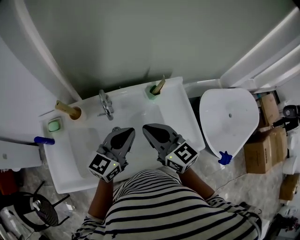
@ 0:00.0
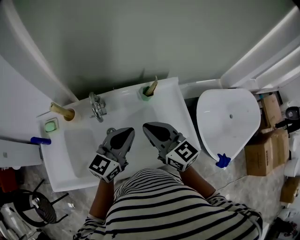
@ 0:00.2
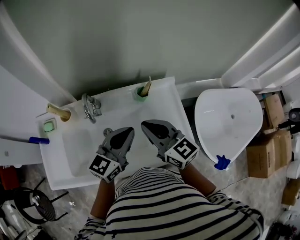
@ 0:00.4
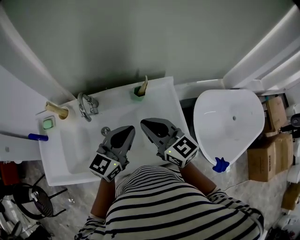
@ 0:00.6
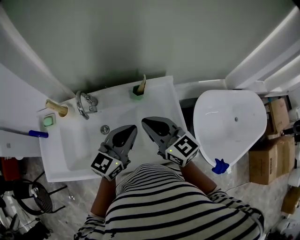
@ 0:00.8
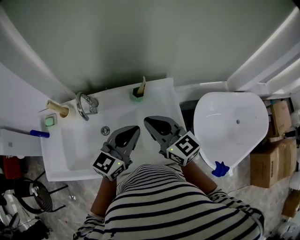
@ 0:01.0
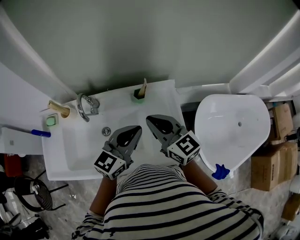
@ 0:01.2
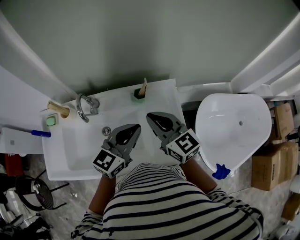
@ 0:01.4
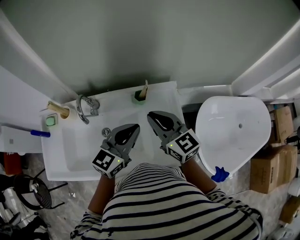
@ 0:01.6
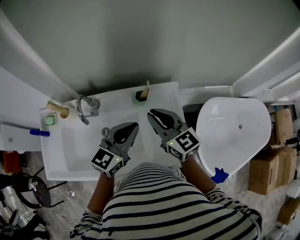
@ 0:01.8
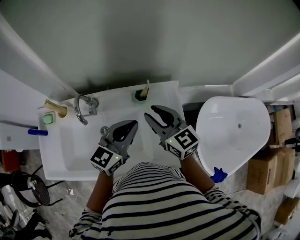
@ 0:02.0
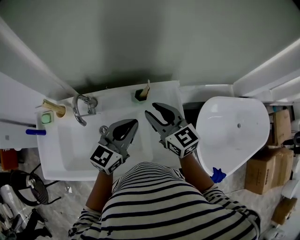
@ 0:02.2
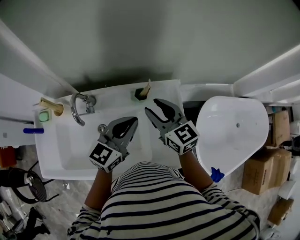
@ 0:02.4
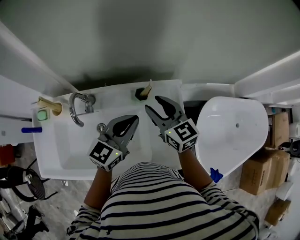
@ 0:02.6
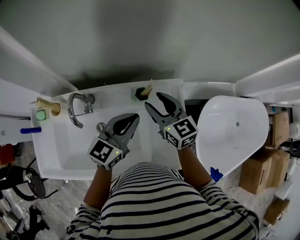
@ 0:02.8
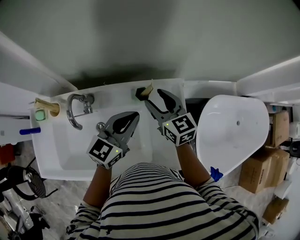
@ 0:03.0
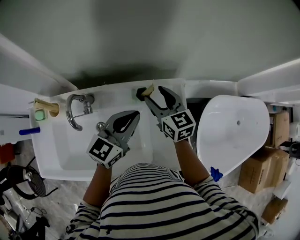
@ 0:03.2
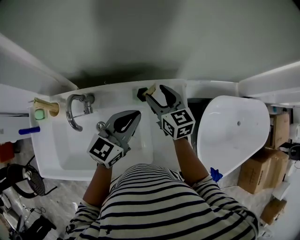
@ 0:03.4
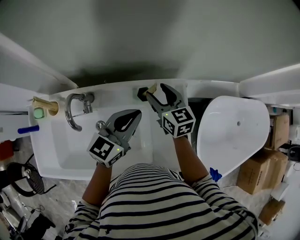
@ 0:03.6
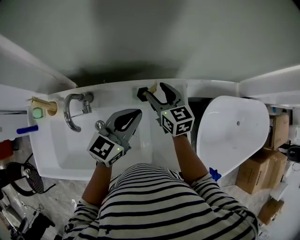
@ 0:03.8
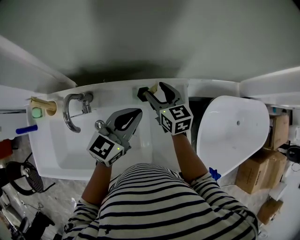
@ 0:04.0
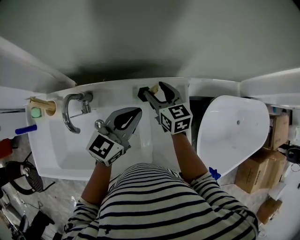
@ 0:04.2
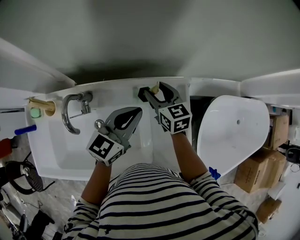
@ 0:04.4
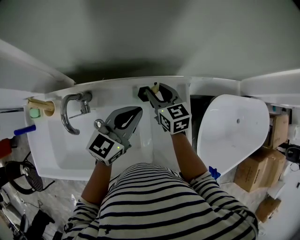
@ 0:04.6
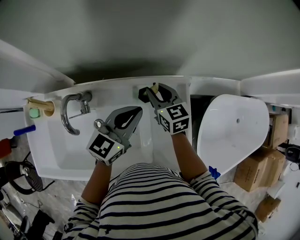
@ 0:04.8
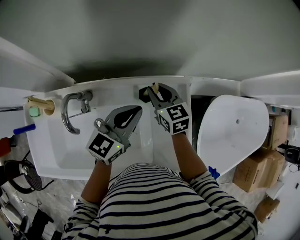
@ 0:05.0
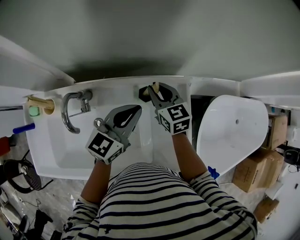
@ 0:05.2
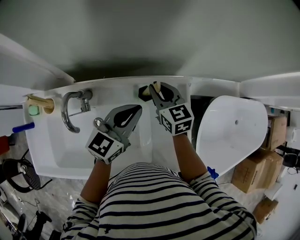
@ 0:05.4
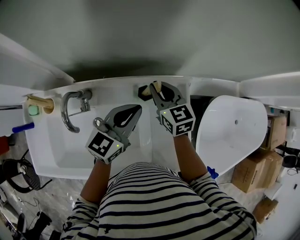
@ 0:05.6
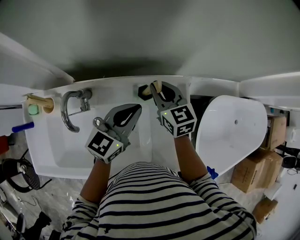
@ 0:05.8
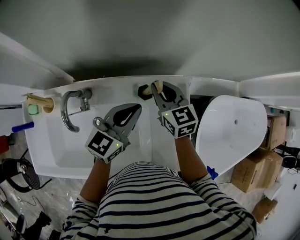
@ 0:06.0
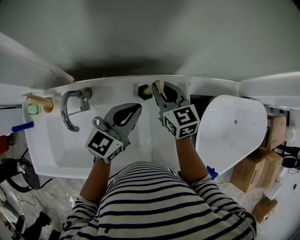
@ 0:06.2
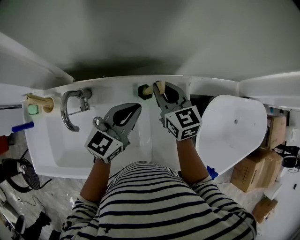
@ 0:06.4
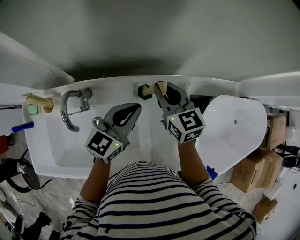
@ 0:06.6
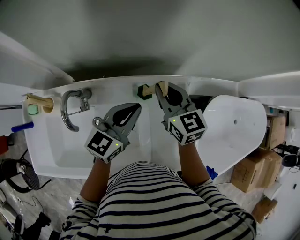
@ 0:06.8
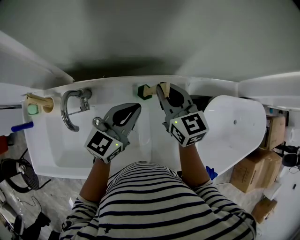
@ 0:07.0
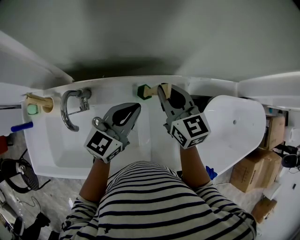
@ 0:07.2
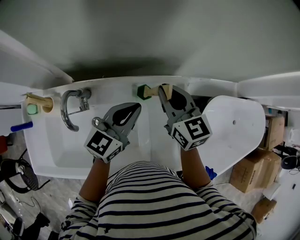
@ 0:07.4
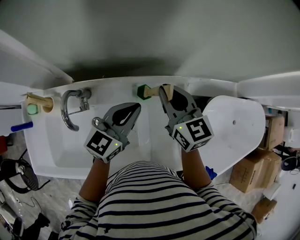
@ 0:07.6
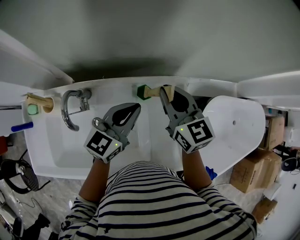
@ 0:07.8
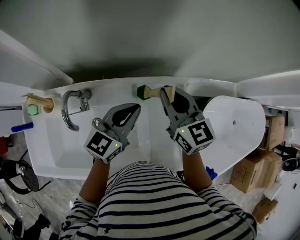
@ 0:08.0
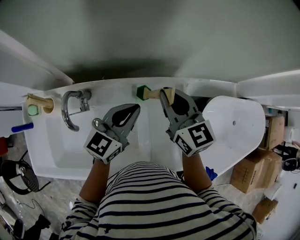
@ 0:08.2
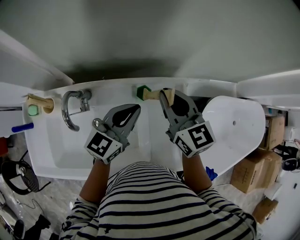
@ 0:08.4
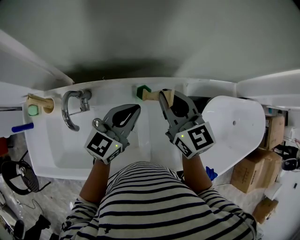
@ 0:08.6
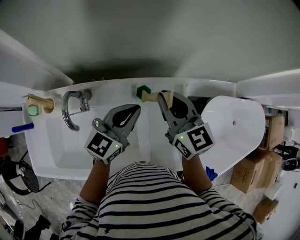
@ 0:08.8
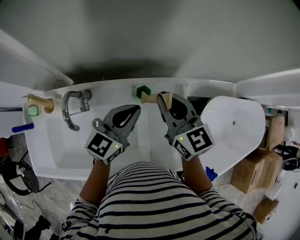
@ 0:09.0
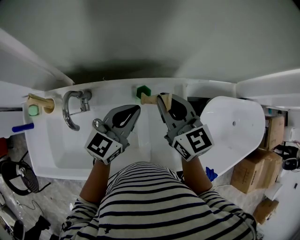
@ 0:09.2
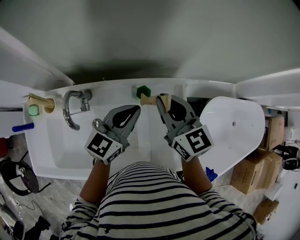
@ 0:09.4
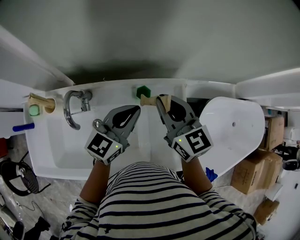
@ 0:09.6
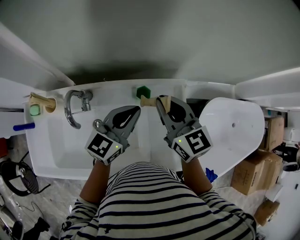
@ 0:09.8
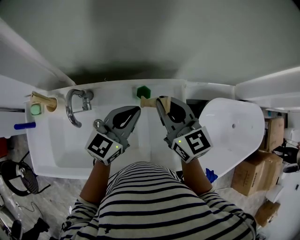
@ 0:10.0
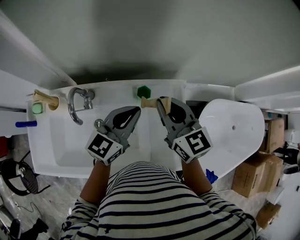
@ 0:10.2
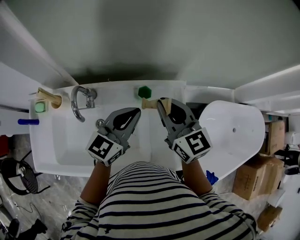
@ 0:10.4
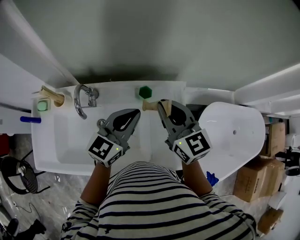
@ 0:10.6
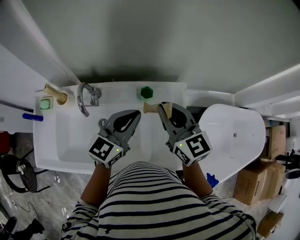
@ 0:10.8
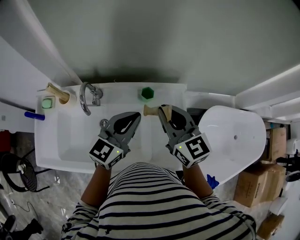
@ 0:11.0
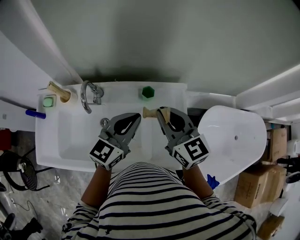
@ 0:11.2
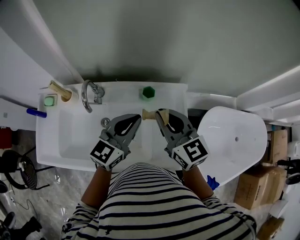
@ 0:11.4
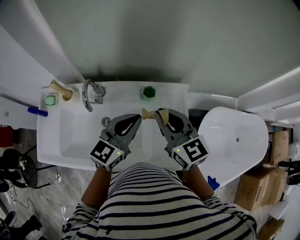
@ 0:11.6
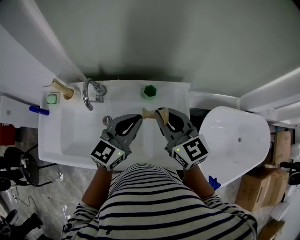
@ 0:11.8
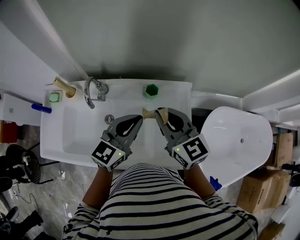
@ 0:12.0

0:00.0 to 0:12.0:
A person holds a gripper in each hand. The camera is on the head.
0:00.0 to 0:01.6: The left gripper shifts some 15 cm to the right. The right gripper travels to the right and forward by approximately 15 cm.
0:01.6 to 0:03.0: The left gripper heads forward, covering some 10 cm. Meanwhile the right gripper shifts some 15 cm forward and downward, and opens up.
0:03.0 to 0:04.4: The right gripper shifts approximately 10 cm downward and forward.
0:04.4 to 0:06.0: The right gripper closes up.
0:06.0 to 0:07.6: The right gripper goes about 5 cm upward.
0:07.6 to 0:09.0: There are only small adjustments of the grippers.
0:09.0 to 0:10.4: The left gripper shifts by about 5 cm. The right gripper shifts by roughly 5 cm.
0:10.4 to 0:12.0: Both grippers move backward, roughly 5 cm.

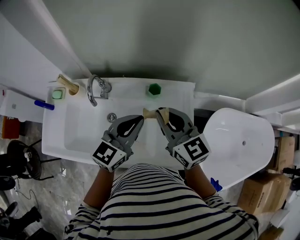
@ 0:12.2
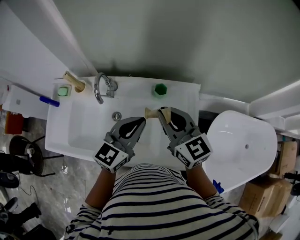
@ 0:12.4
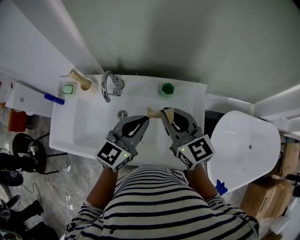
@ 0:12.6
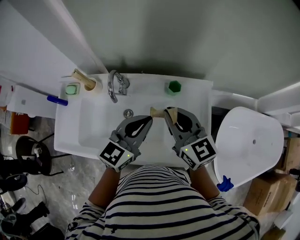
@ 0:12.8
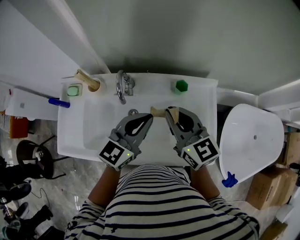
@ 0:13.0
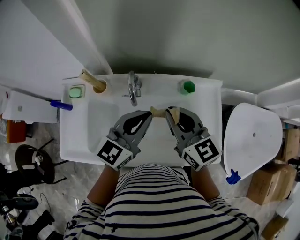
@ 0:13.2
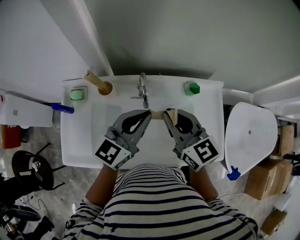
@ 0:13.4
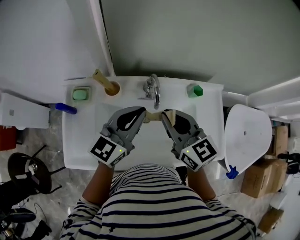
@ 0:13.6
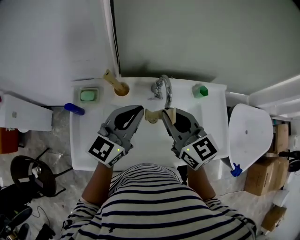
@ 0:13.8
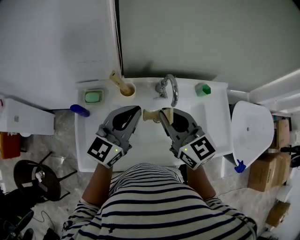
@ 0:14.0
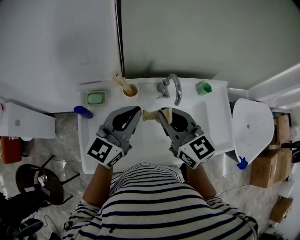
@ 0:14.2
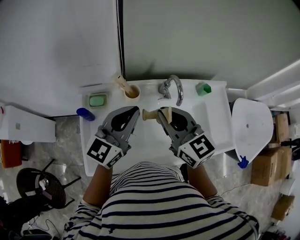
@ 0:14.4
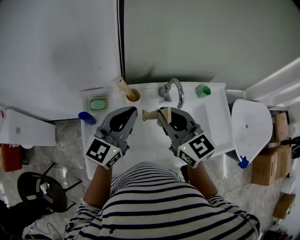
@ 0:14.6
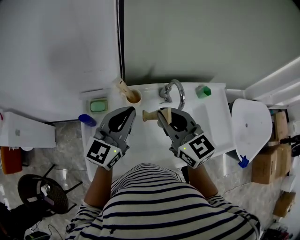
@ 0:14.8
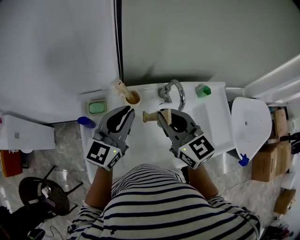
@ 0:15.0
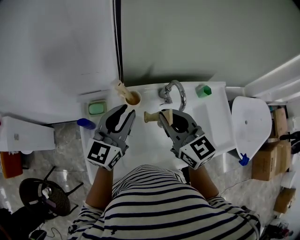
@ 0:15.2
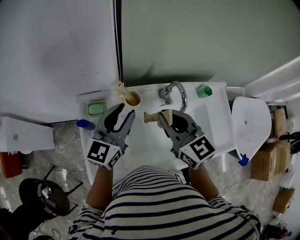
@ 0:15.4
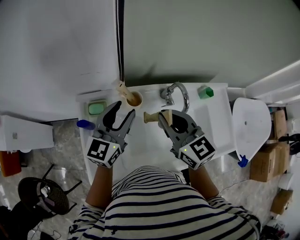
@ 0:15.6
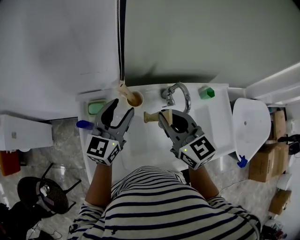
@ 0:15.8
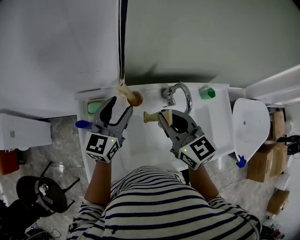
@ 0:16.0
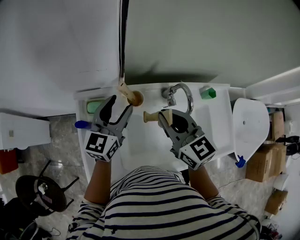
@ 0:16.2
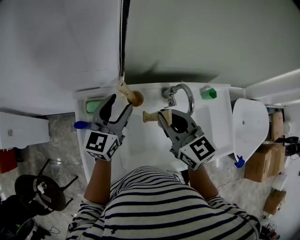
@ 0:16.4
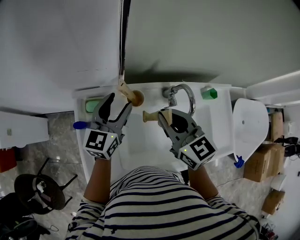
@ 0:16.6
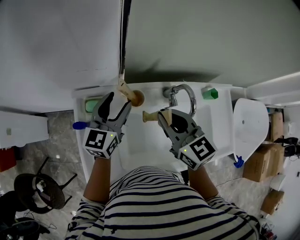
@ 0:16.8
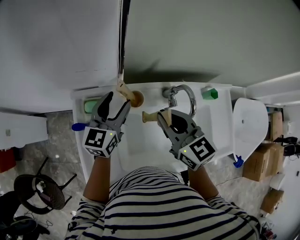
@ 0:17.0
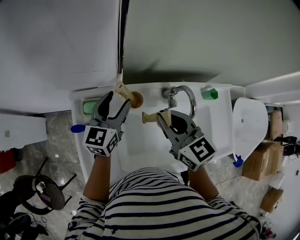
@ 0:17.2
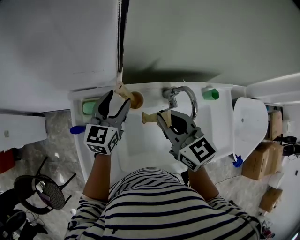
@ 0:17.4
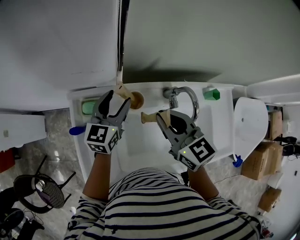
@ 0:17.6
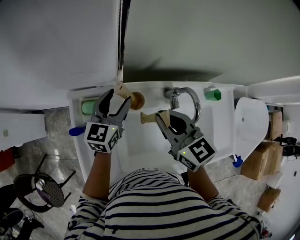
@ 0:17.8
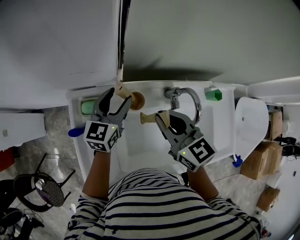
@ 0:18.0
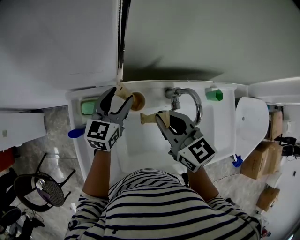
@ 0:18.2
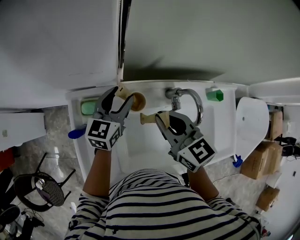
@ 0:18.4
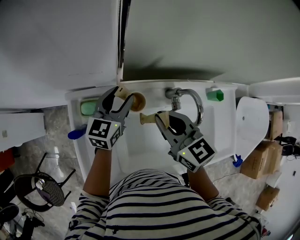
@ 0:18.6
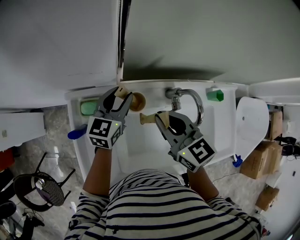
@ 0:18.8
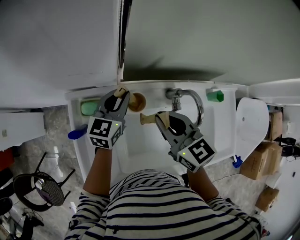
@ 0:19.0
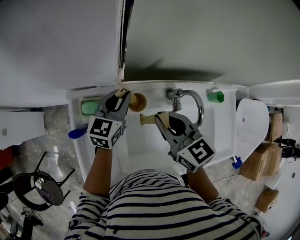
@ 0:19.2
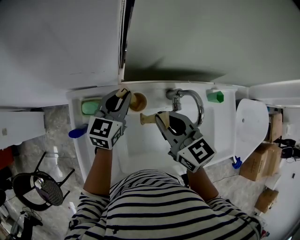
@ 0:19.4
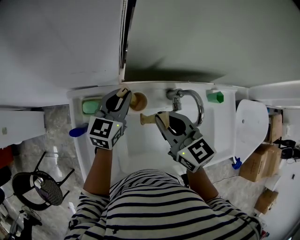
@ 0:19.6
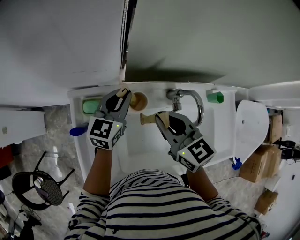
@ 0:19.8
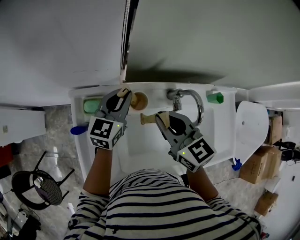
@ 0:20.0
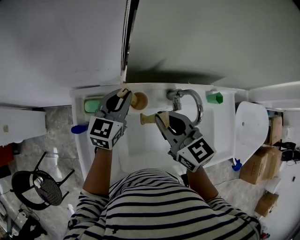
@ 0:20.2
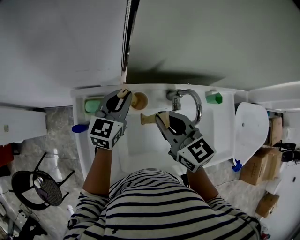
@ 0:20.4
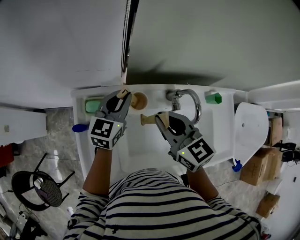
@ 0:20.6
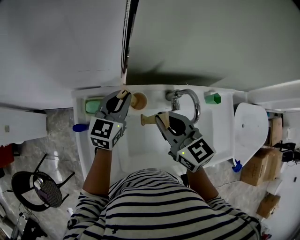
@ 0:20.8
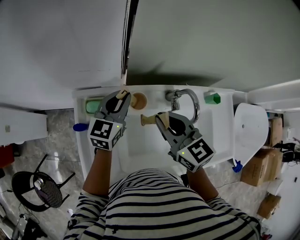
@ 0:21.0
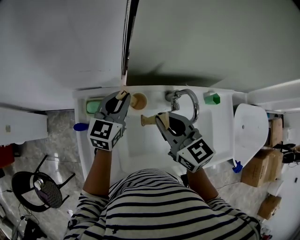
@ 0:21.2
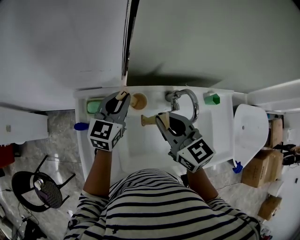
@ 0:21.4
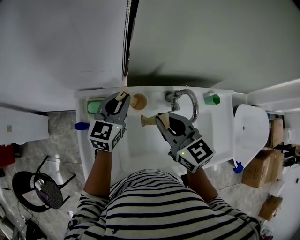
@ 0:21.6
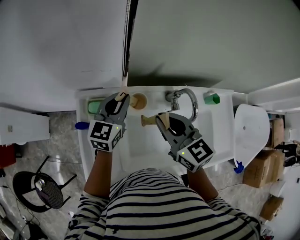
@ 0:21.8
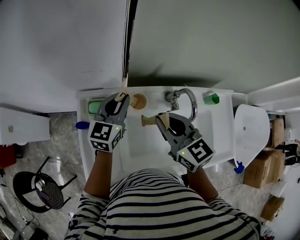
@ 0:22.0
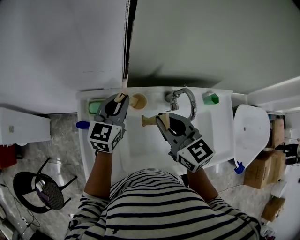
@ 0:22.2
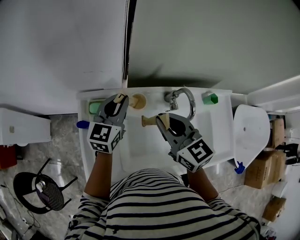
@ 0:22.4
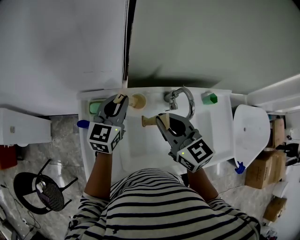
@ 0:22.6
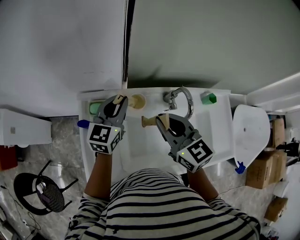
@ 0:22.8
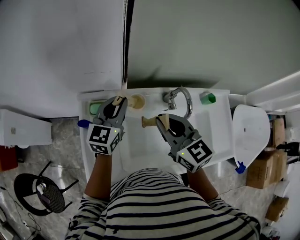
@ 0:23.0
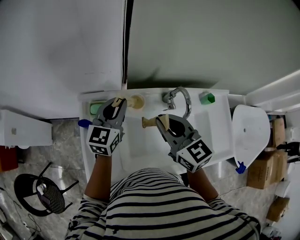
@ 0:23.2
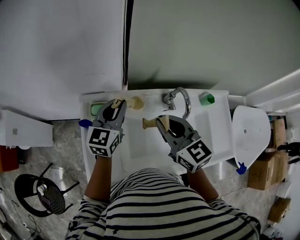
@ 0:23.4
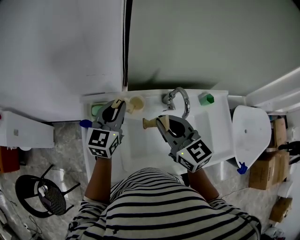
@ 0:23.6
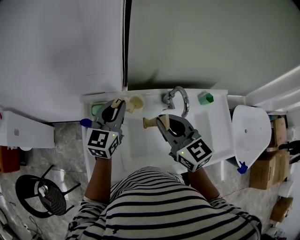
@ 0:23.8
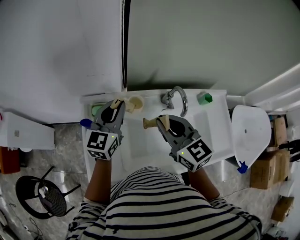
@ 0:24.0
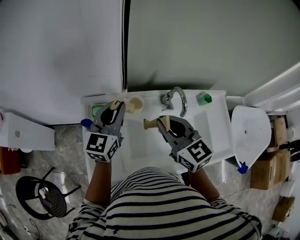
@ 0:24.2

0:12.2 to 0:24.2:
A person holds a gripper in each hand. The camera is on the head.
0:12.2 to 0:13.8: Both grippers travel together to the left, roughly 30 cm.
0:13.8 to 0:15.2: Both grippers travel together to the left, about 10 cm. The left gripper opens its fingers.
0:15.2 to 0:16.6: The left gripper shifts approximately 10 cm forward and downward, and opens up, while the right gripper changes place by roughly 5 cm.
0:16.6 to 0:18.2: The left gripper heads downward and forward, covering some 10 cm. The right gripper shifts by approximately 5 cm.
0:18.2 to 0:19.8: The left gripper closes its fingers.
0:19.8 to 0:21.2: The grippers stay close to where they were, moving slightly.
0:21.2 to 0:22.6: The grippers stay close to where they were, moving slightly.
0:22.6 to 0:24.2: The left gripper travels upward and backward by approximately 10 cm.
